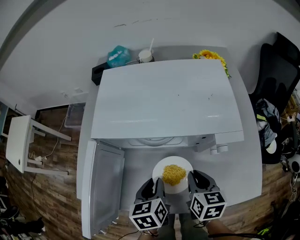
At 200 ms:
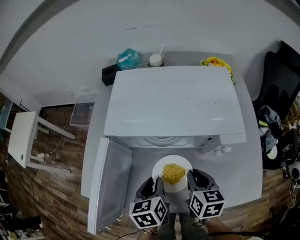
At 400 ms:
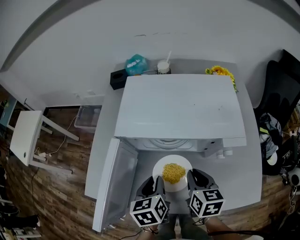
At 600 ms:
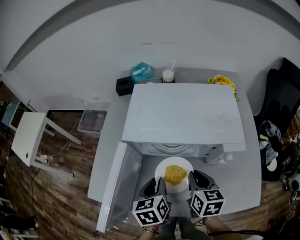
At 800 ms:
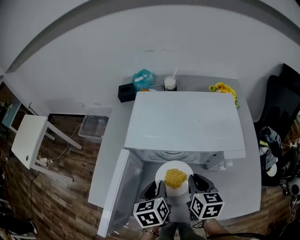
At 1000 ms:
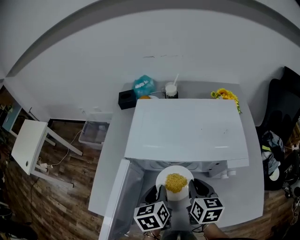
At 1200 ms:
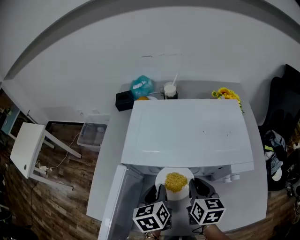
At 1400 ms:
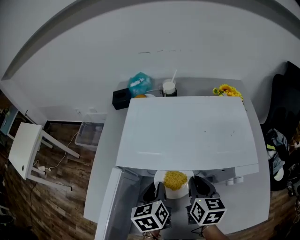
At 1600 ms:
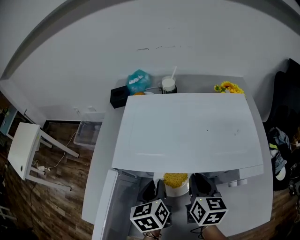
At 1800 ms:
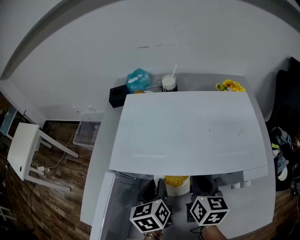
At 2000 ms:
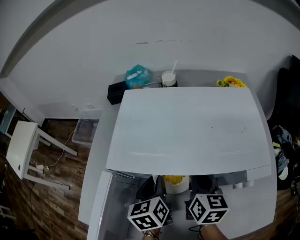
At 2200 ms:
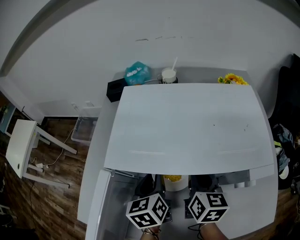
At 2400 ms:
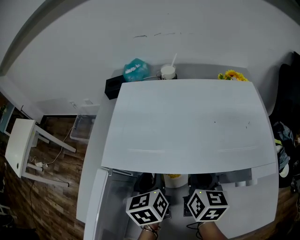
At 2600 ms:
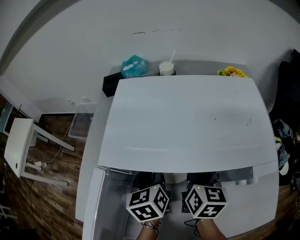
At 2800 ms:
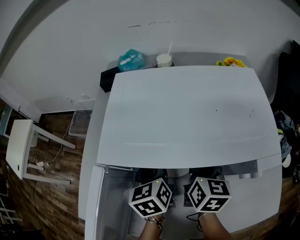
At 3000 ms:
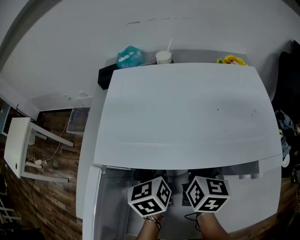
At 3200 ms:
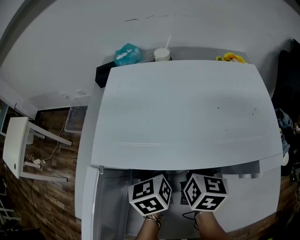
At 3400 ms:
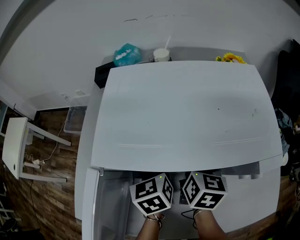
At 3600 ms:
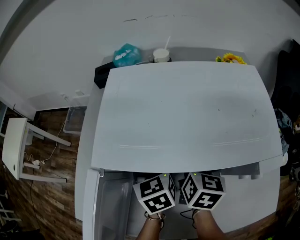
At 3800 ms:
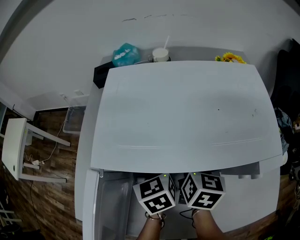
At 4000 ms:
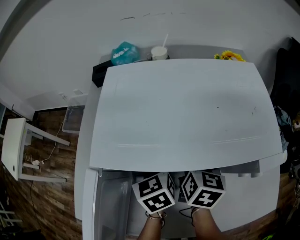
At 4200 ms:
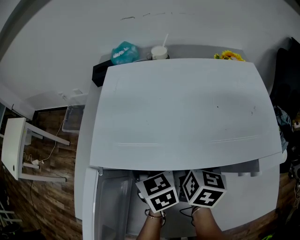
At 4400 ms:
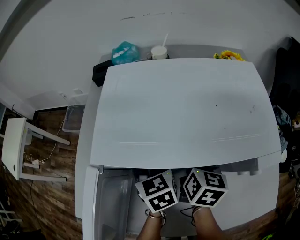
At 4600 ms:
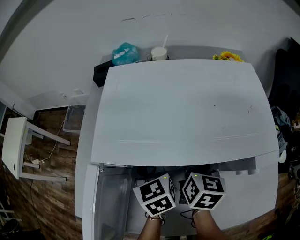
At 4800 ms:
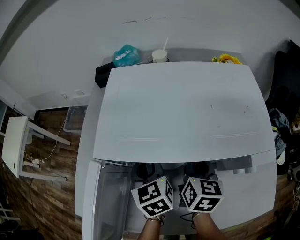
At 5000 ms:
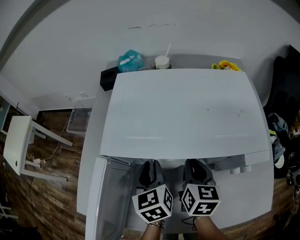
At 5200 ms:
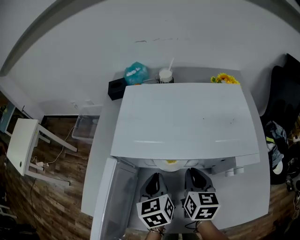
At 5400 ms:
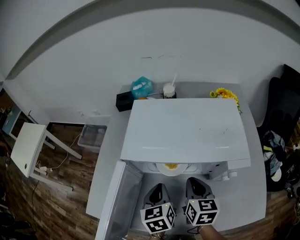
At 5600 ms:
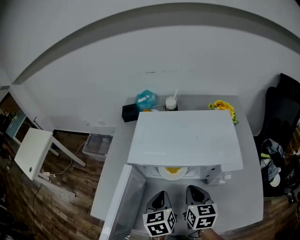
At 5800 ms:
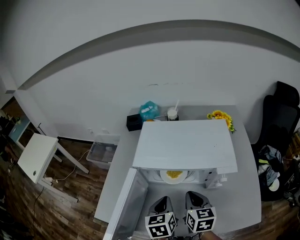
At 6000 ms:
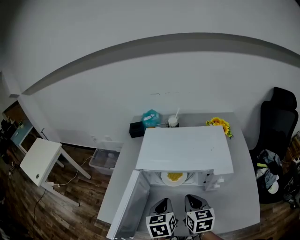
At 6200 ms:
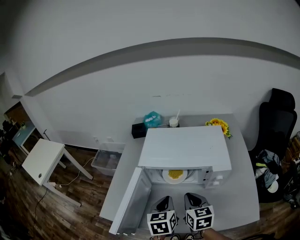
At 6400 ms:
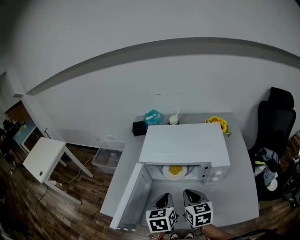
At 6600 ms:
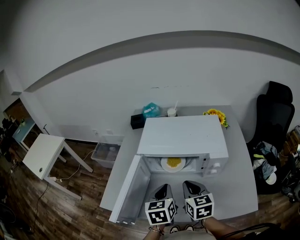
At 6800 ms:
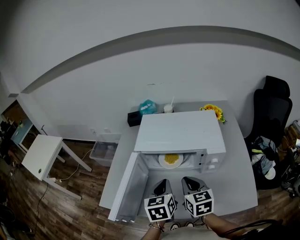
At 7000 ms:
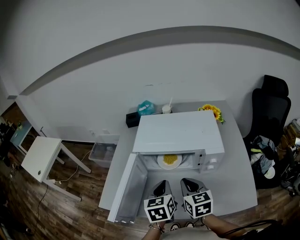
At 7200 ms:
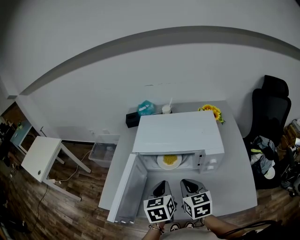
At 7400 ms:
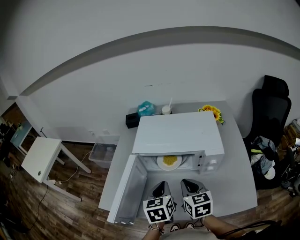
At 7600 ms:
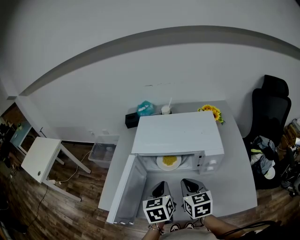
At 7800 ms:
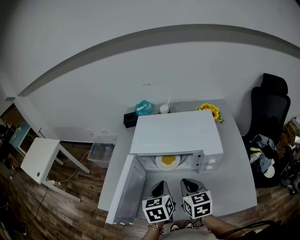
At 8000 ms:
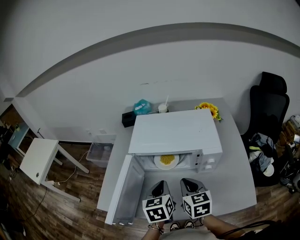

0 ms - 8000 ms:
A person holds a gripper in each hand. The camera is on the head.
0 ms - 1600 ms: The grippers both shift forward by about 10 cm.
1600 ms - 3200 ms: Both grippers move forward, some 5 cm.
3200 ms - 4800 ms: The grippers stay close to where they were, moving slightly.
4800 ms - 6400 ms: Both grippers move backward and upward, approximately 20 cm. The right gripper turns by roughly 30 degrees, while the left gripper closes its fingers.
6400 ms - 8000 ms: The grippers stay close to where they were, moving slightly.

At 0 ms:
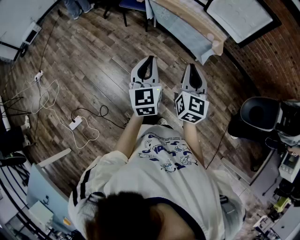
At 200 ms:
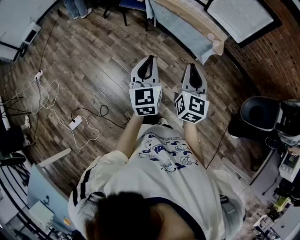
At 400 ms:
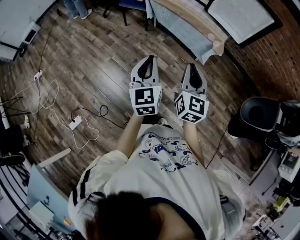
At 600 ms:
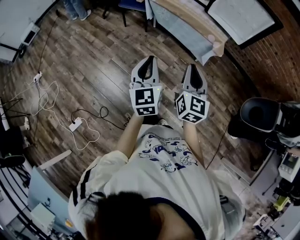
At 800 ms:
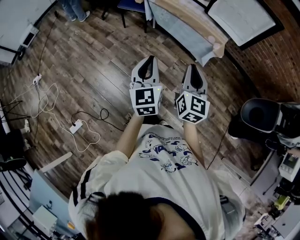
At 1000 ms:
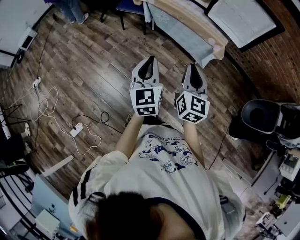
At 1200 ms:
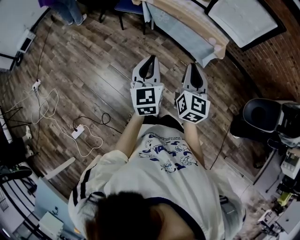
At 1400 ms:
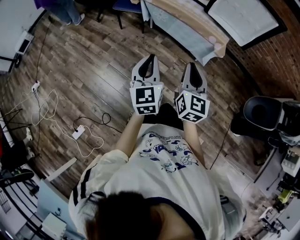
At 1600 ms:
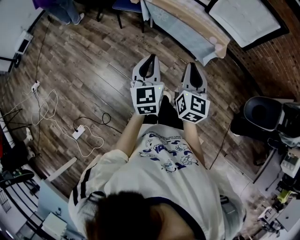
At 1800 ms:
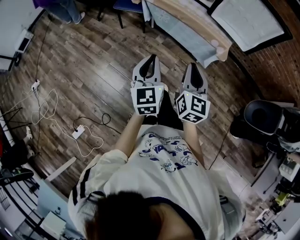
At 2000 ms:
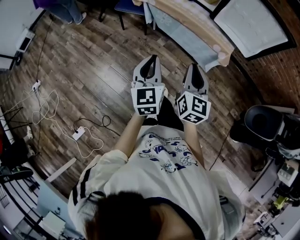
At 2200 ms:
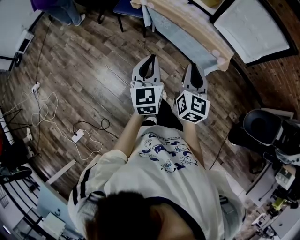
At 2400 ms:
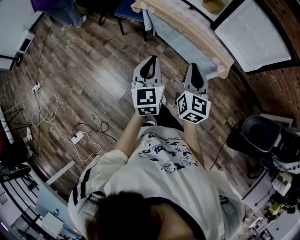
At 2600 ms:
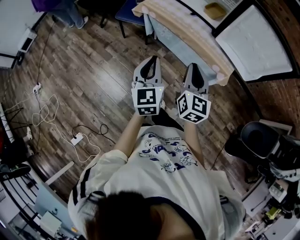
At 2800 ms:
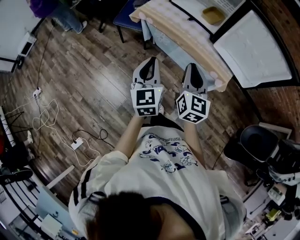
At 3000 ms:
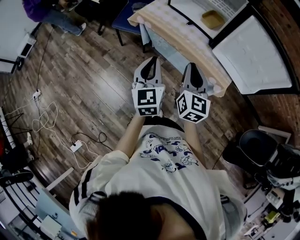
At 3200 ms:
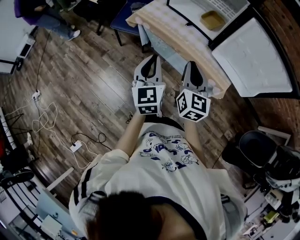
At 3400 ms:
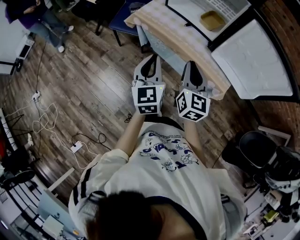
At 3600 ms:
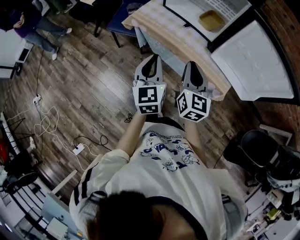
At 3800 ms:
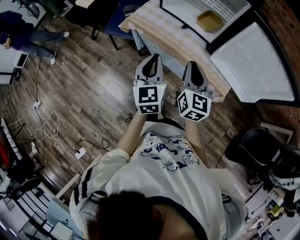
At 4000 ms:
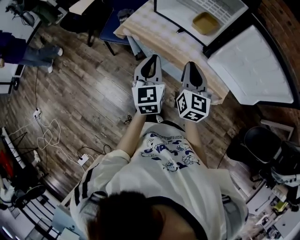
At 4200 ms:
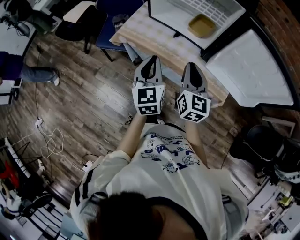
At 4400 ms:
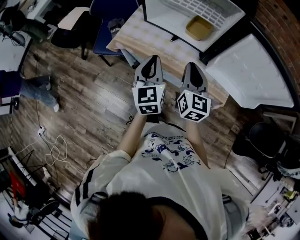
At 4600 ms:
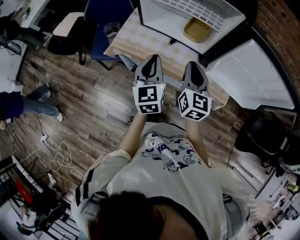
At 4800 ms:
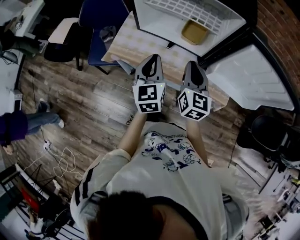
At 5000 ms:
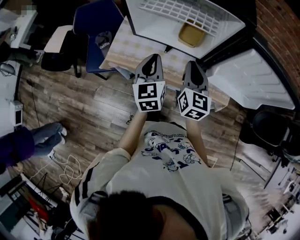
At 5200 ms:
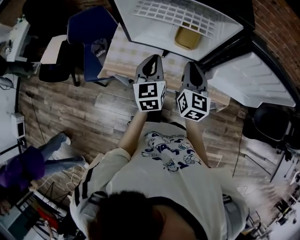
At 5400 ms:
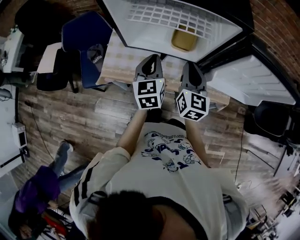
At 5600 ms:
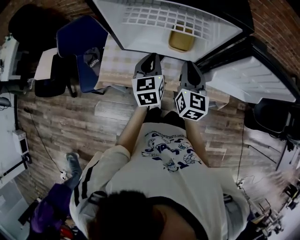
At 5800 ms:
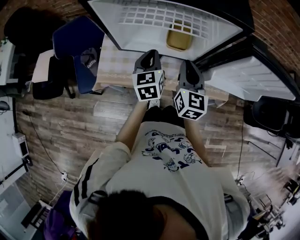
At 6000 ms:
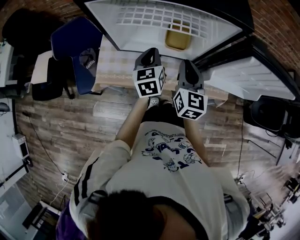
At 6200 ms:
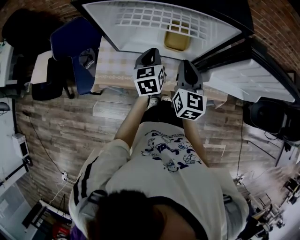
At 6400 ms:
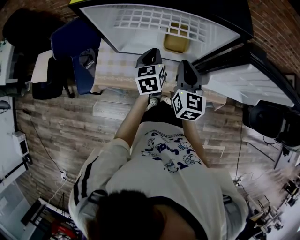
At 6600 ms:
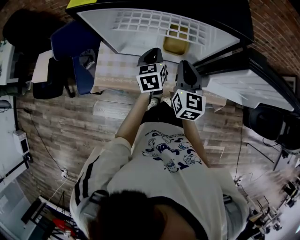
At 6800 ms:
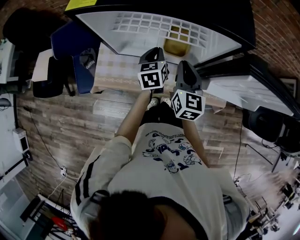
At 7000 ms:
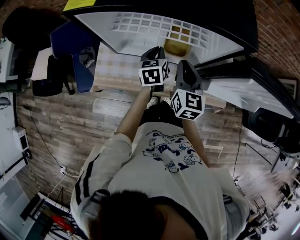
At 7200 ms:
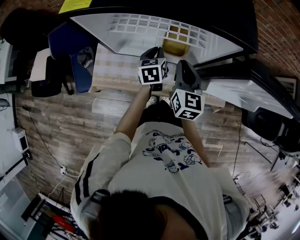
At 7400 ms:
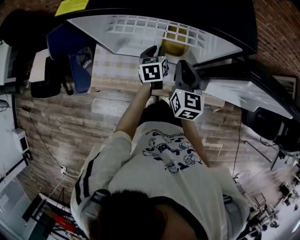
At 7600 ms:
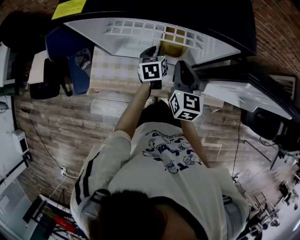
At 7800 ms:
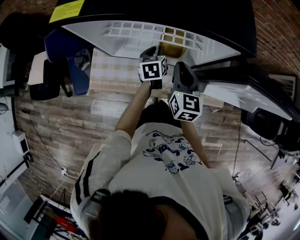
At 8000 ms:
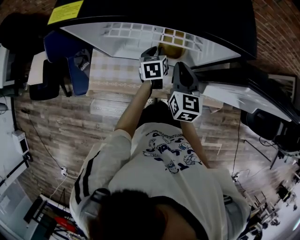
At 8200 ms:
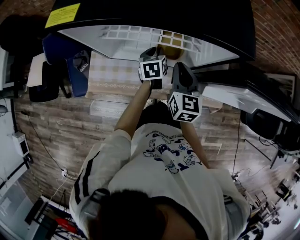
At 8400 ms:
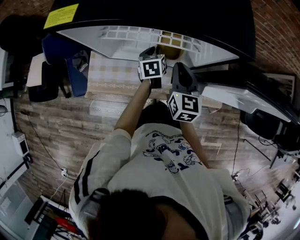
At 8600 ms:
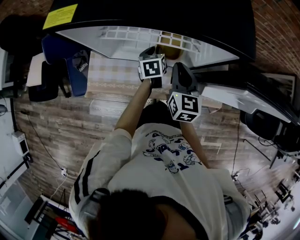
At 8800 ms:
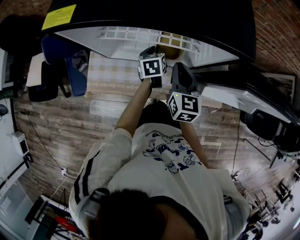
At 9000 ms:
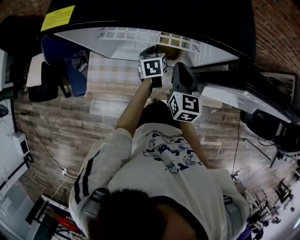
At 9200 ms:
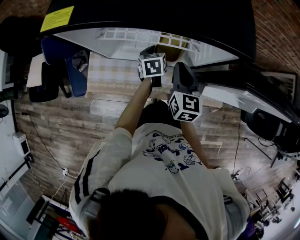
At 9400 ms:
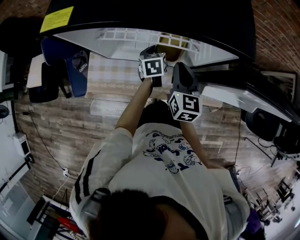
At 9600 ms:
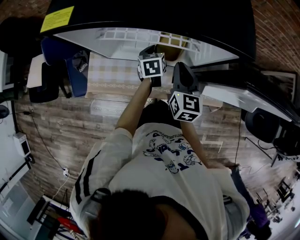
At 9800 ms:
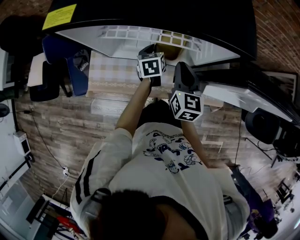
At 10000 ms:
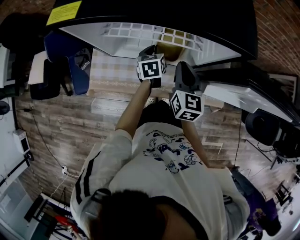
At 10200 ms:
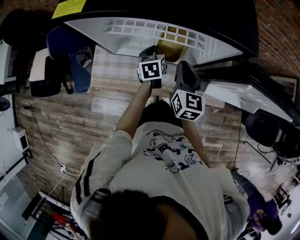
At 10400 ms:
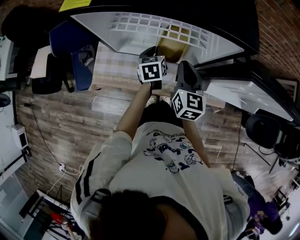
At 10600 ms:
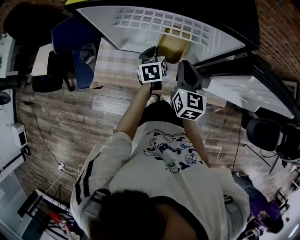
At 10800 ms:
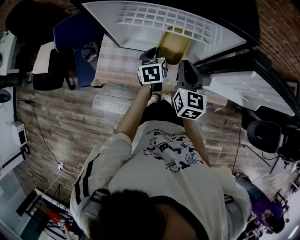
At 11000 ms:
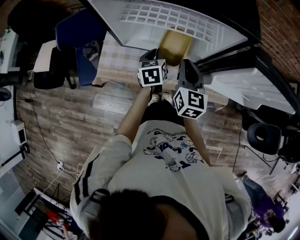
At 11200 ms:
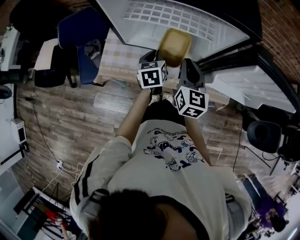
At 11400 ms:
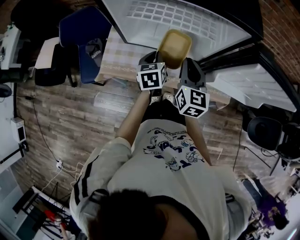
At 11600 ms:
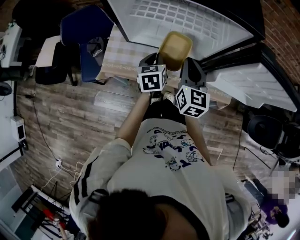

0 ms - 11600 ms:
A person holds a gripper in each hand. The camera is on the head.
0 ms - 1400 ms: Both grippers move forward, some 10 cm.
1400 ms - 2800 ms: Both grippers travel together forward, some 25 cm.
2800 ms - 4400 ms: The grippers both shift forward by roughly 25 cm.
4400 ms - 5800 ms: The left gripper travels forward by some 25 cm, and turns by about 30 degrees. Meanwhile the right gripper heads forward, covering approximately 15 cm, and turns by approximately 20 degrees.
5800 ms - 7200 ms: The right gripper heads forward, covering some 5 cm. Meanwhile the left gripper travels forward and downward by about 10 cm.
7200 ms - 8800 ms: The left gripper changes place by approximately 5 cm.
8800 ms - 10200 ms: The grippers move only a little.
10200 ms - 11600 ms: The left gripper shifts some 15 cm backward and to the left; the right gripper is displaced backward by some 5 cm.

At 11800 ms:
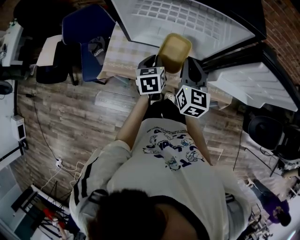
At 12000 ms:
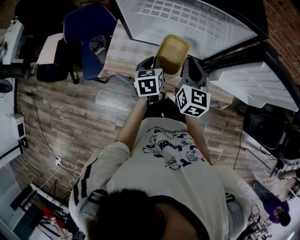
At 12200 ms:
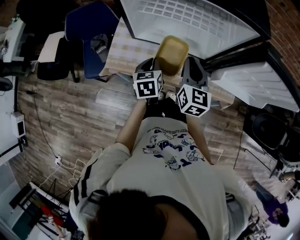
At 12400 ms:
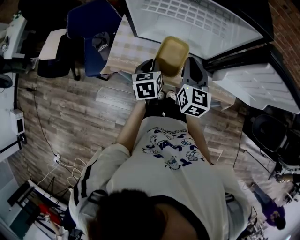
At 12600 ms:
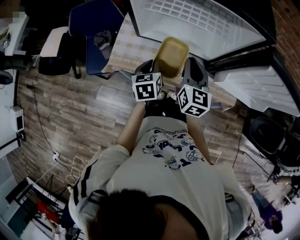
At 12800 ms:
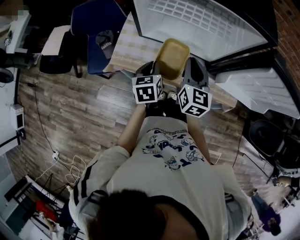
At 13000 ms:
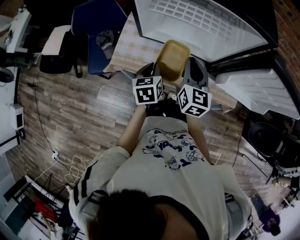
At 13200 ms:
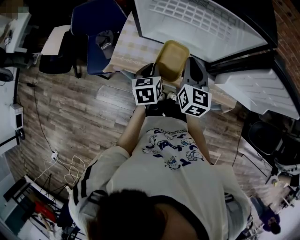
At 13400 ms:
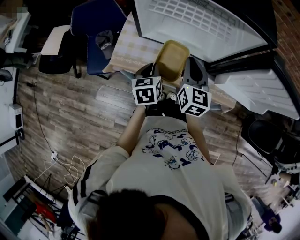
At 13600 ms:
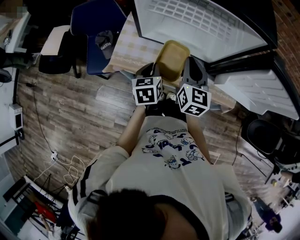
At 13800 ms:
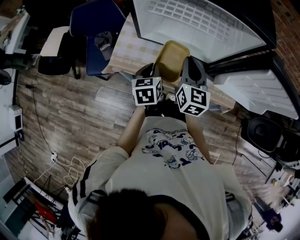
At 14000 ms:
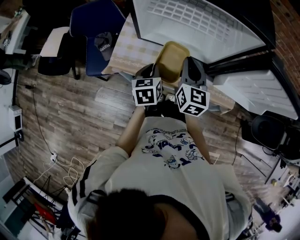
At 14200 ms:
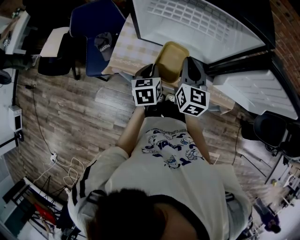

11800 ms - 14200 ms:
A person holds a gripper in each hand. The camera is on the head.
11800 ms - 13000 ms: The left gripper travels backward by about 5 cm.
13000 ms - 14200 ms: Both grippers stay about where they are.

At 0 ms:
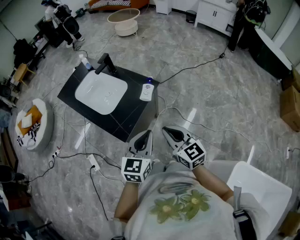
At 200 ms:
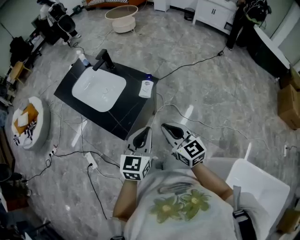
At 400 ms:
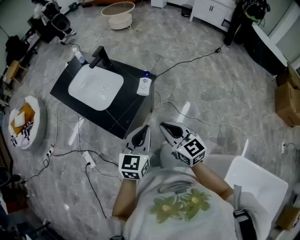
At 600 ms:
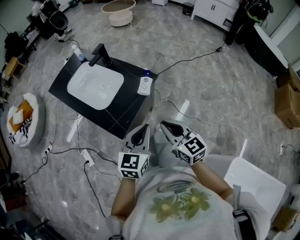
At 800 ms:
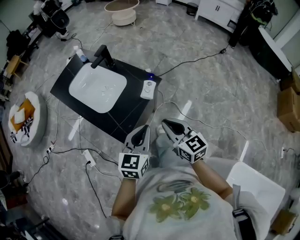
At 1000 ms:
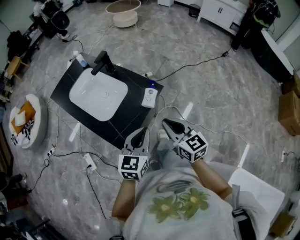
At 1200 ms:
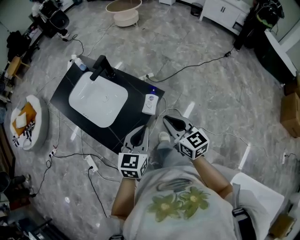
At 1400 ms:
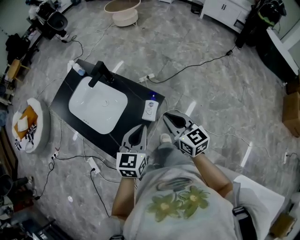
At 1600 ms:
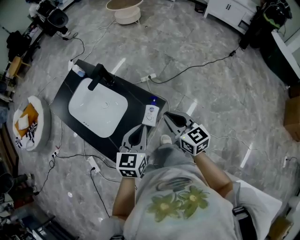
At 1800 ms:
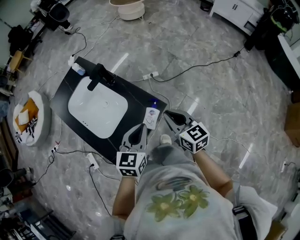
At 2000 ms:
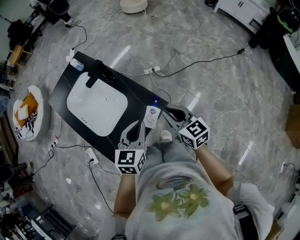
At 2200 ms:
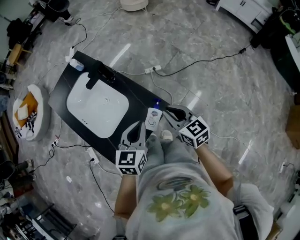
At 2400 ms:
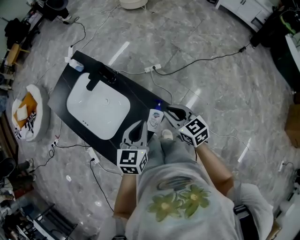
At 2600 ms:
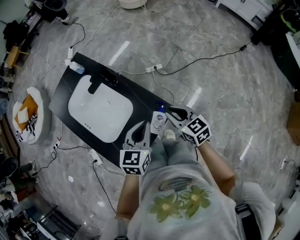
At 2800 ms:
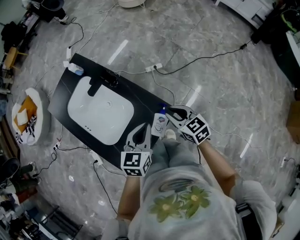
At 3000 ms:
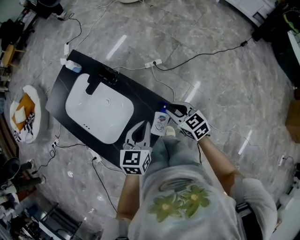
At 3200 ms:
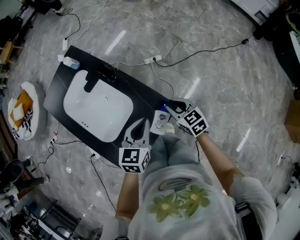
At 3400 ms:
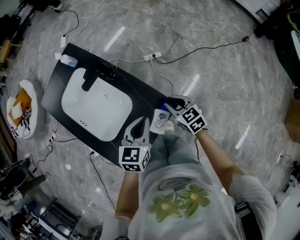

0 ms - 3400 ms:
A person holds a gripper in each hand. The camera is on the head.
0 ms - 1600 ms: The grippers both shift forward by some 30 cm.
1600 ms - 3400 ms: The left gripper goes some 20 cm forward and downward. The right gripper goes about 25 cm downward and forward, and turns by some 30 degrees.
